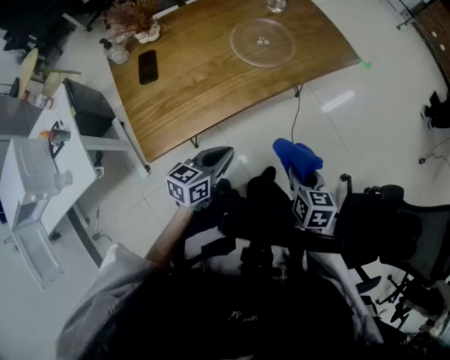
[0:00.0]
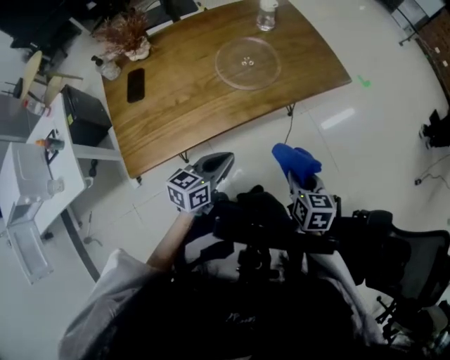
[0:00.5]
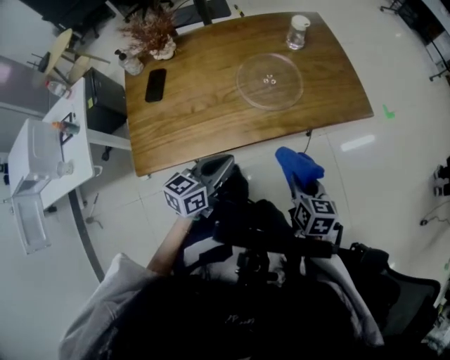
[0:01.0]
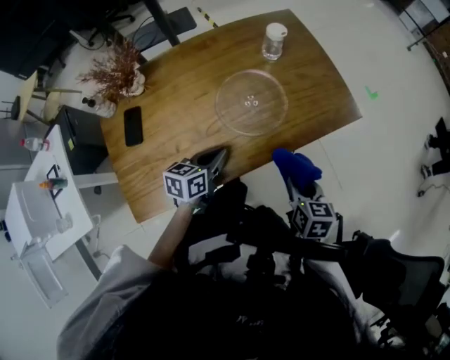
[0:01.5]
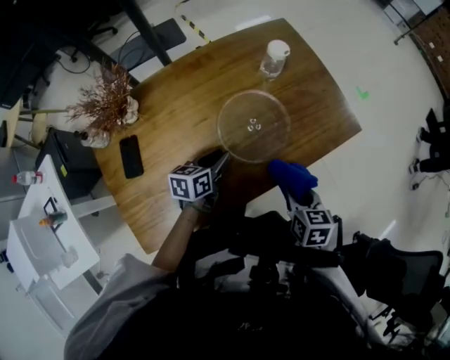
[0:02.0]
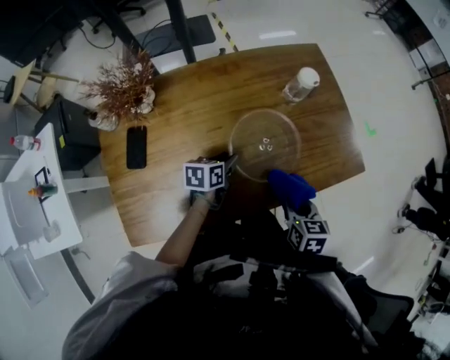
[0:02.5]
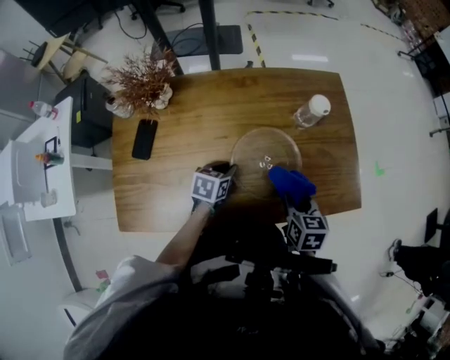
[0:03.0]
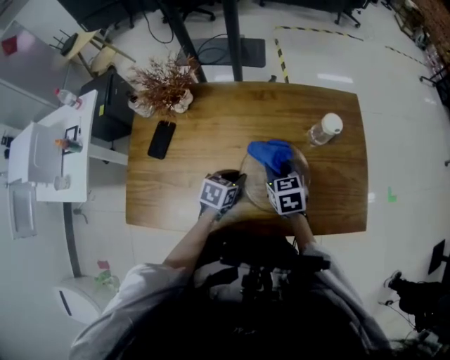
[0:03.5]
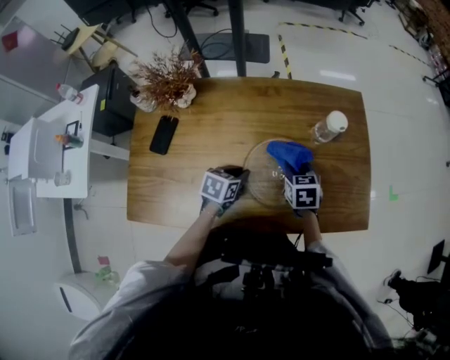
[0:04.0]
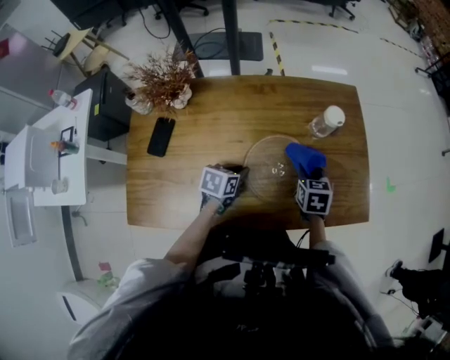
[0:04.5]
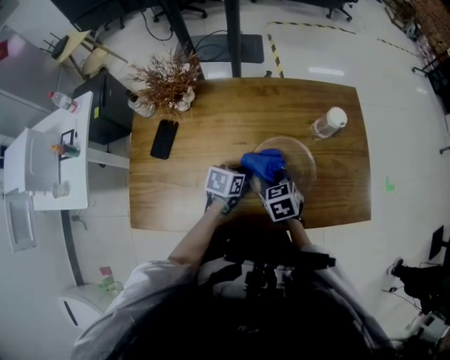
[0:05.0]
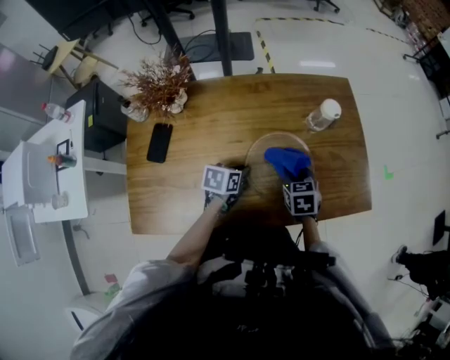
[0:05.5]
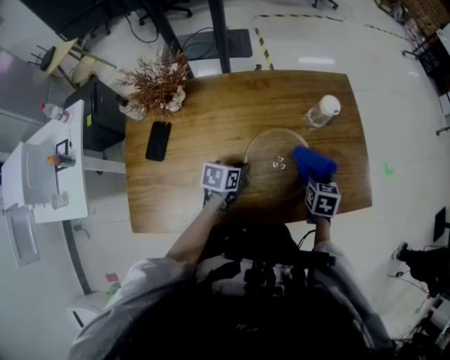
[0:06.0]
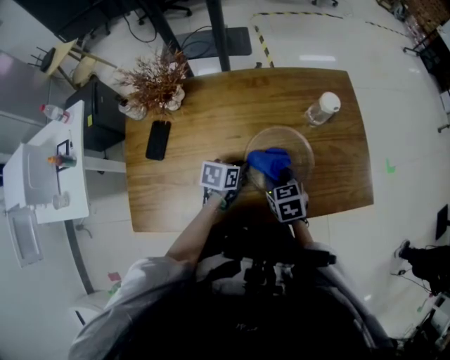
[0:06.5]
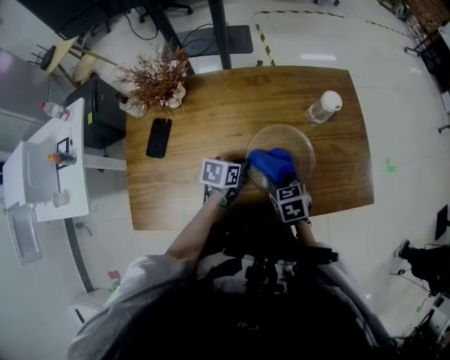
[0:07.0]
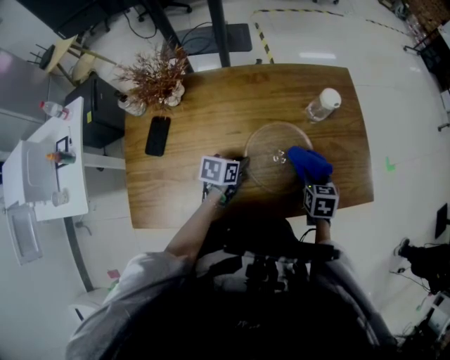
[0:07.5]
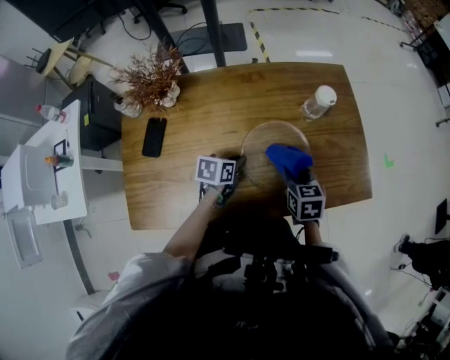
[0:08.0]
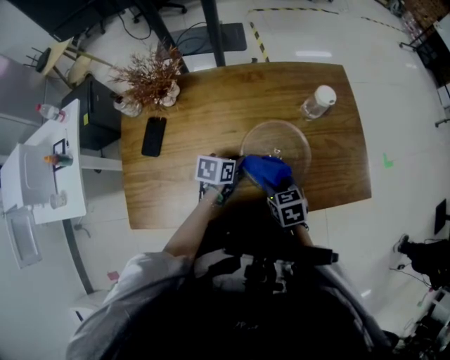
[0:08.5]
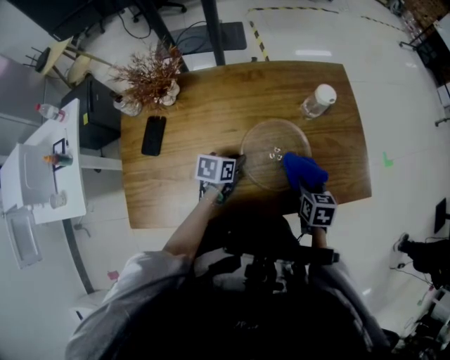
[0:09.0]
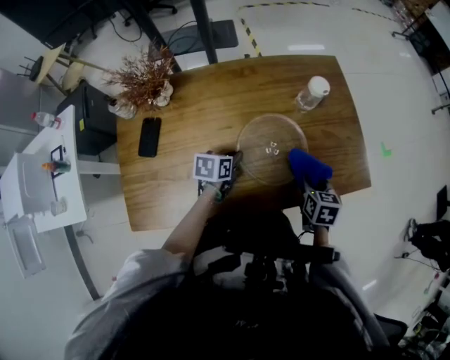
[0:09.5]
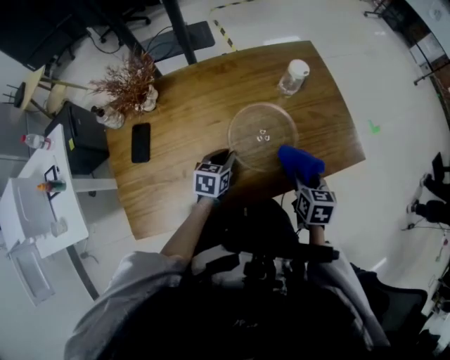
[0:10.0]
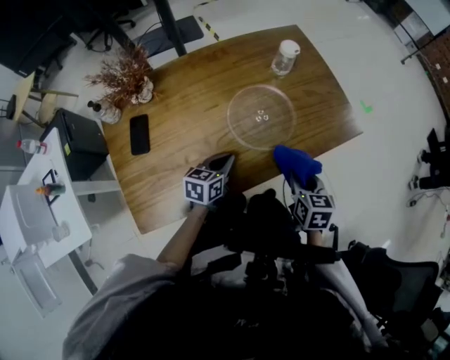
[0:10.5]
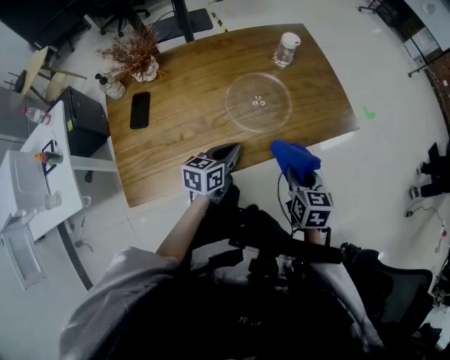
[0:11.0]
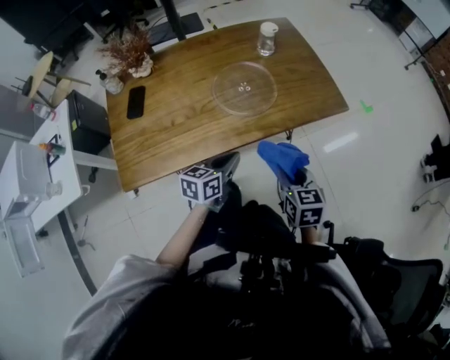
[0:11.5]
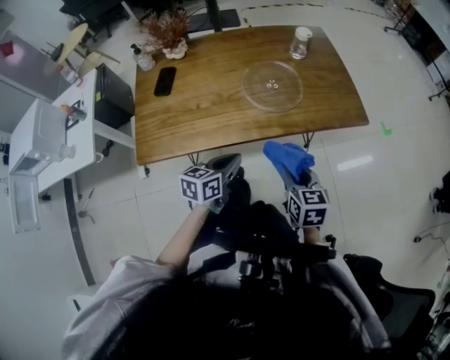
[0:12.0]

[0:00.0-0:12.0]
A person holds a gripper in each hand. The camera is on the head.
0.0 to 2.0 s: Both grippers move forward, approximately 30 cm. The left gripper opens its fingers.
2.0 to 4.0 s: The left gripper moves approximately 5 cm, and swivels roughly 20 degrees. The right gripper moves some 25 cm, and rotates approximately 40 degrees.
4.0 to 6.0 s: The right gripper goes left and right, approximately 20 cm each way, reversing 2 times, and swivels roughly 20 degrees.
6.0 to 8.0 s: The right gripper swings left and right, roughly 15 cm each way, with 2 reversals.
8.0 to 10.0 s: The right gripper travels to the right and backward by about 10 cm.
10.0 to 12.0 s: The two grippers go some 25 cm backward. The left gripper swivels approximately 20 degrees.

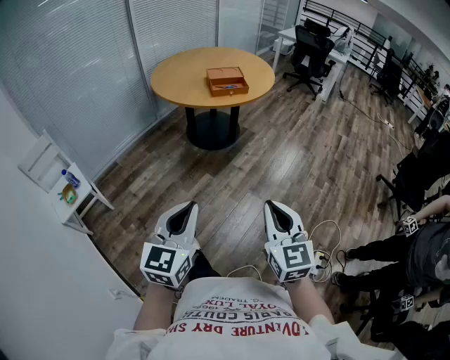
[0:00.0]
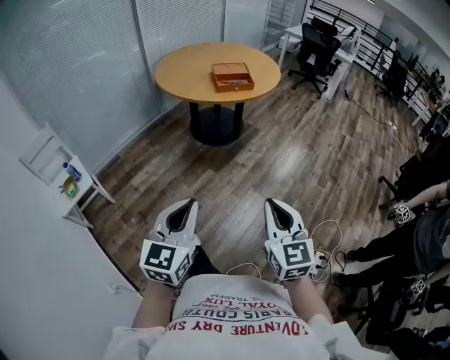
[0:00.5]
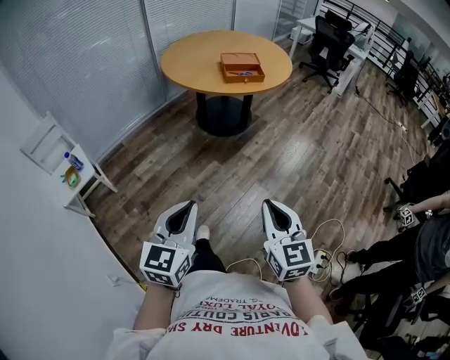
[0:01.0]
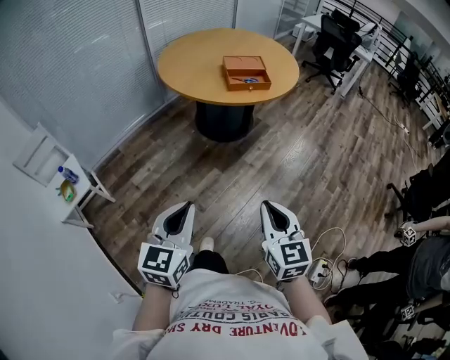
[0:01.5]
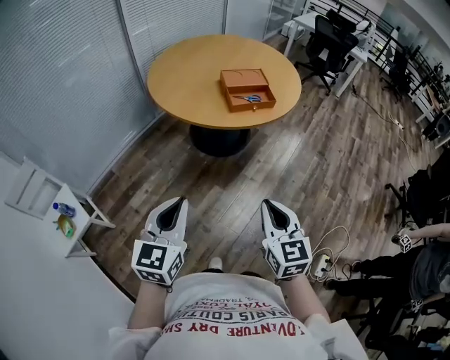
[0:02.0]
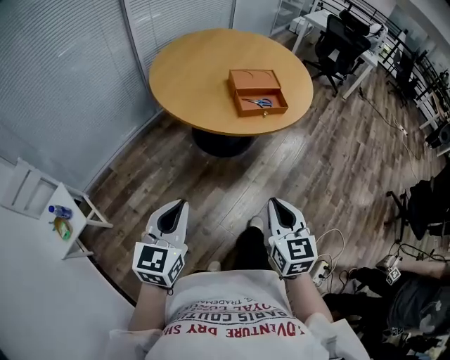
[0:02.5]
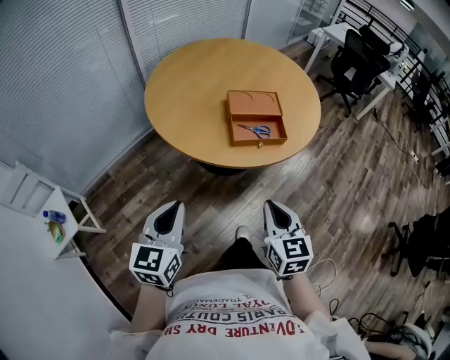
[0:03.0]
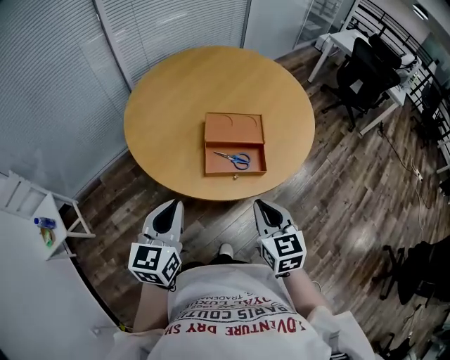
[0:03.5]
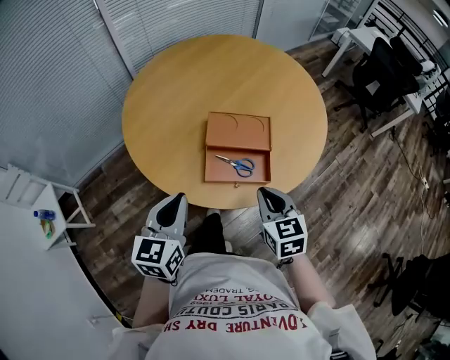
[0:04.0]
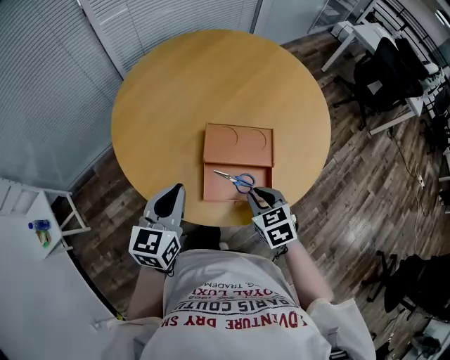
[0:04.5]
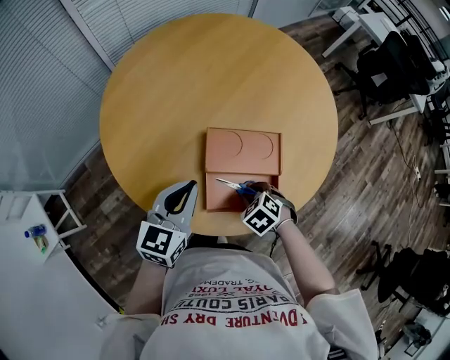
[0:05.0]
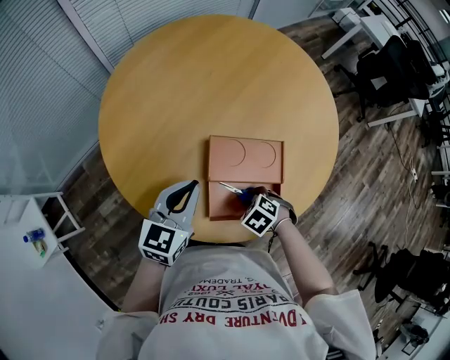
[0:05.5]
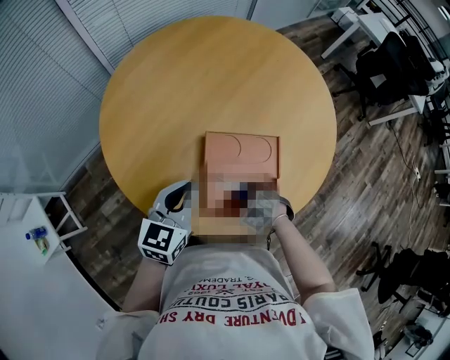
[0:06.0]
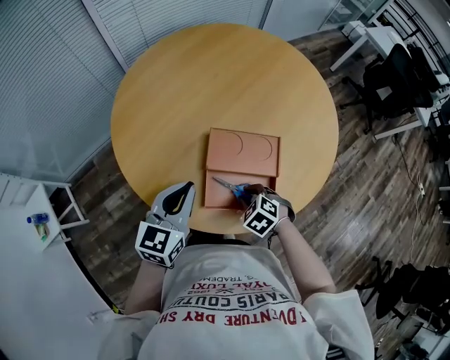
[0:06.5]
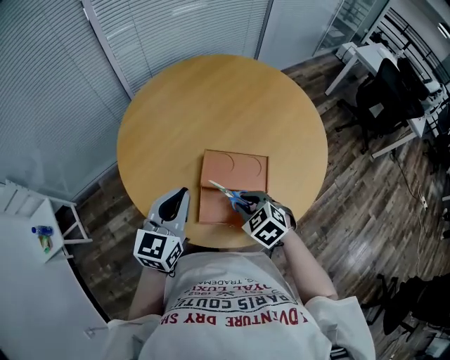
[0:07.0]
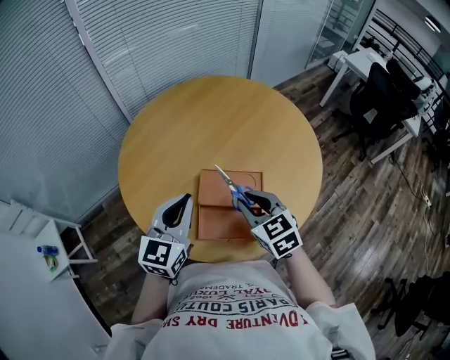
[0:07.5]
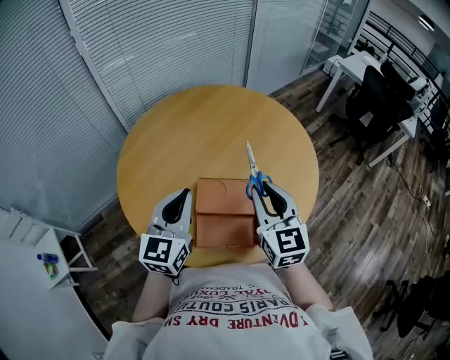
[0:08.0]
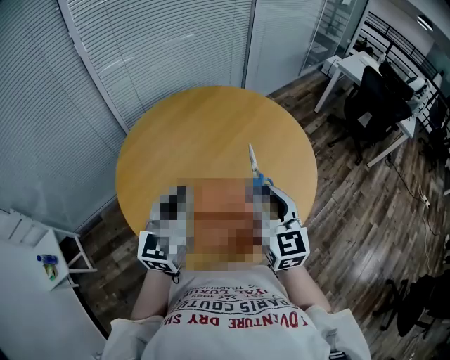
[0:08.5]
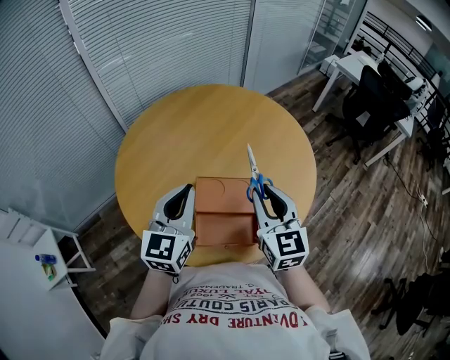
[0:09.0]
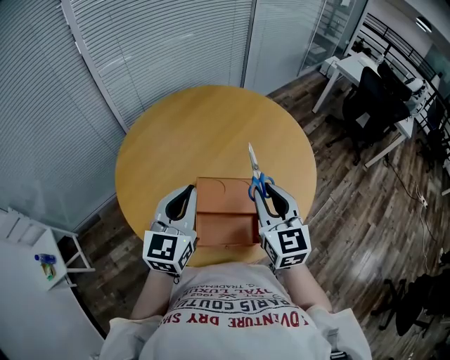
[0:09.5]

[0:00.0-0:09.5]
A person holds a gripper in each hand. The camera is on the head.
0.0 to 2.0 s: The left gripper is displaced forward and to the left by approximately 35 cm. Meanwhile the right gripper shifts approximately 30 cm forward.
2.0 to 4.0 s: The two grippers travel together, forward, about 50 cm. The right gripper changes its angle by approximately 30 degrees. The left gripper rotates about 20 degrees.
4.0 to 5.5 s: The left gripper ends up approximately 20 cm from where it was, while the right gripper is displaced downward by some 20 cm, tips its fingers downward by about 50 degrees, and opens.
5.5 to 7.5 s: The left gripper heads upward, covering about 15 cm, while the right gripper shifts about 25 cm upward, and angles its fingers upward, by approximately 50 degrees.
7.5 to 9.5 s: The right gripper shifts about 10 cm upward and to the right, and turns by roughly 30 degrees; the left gripper shifts by about 5 cm.

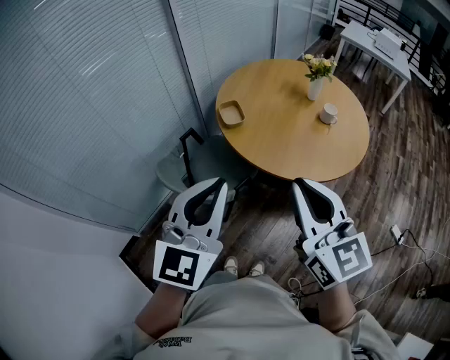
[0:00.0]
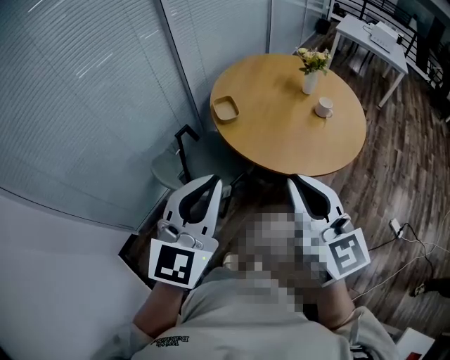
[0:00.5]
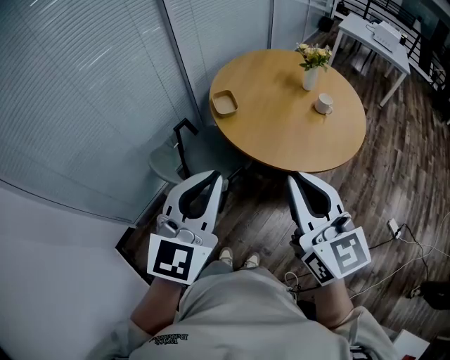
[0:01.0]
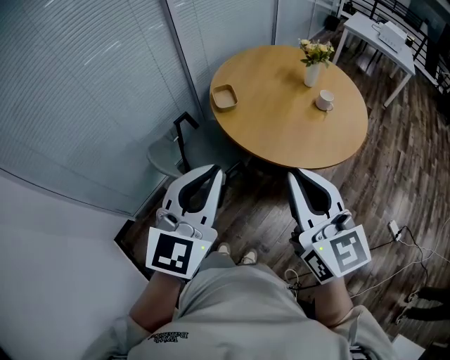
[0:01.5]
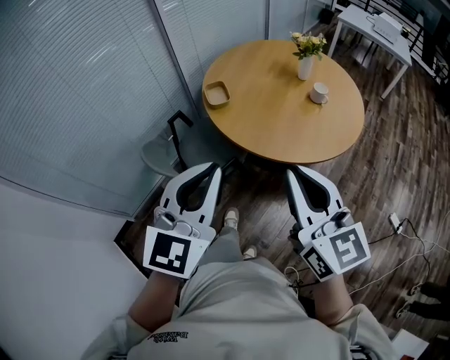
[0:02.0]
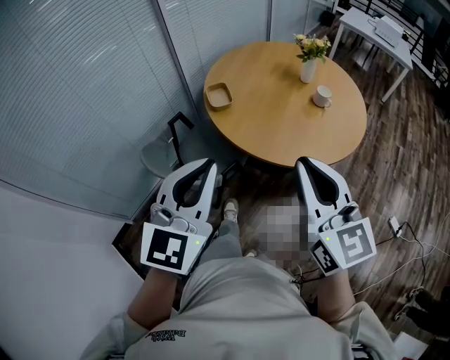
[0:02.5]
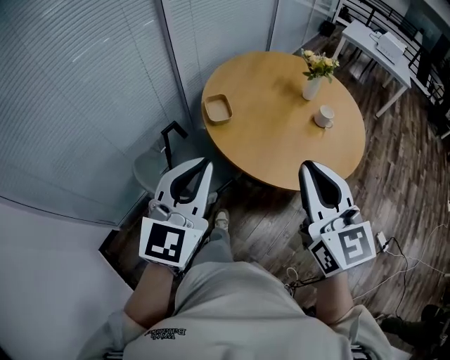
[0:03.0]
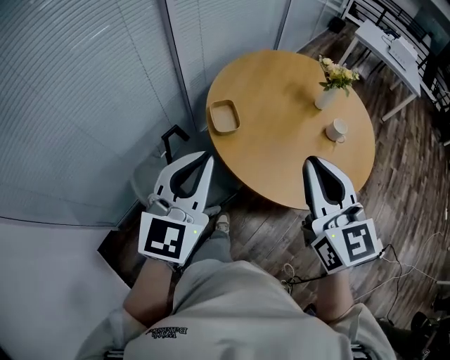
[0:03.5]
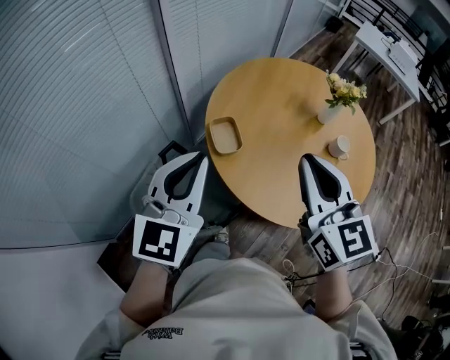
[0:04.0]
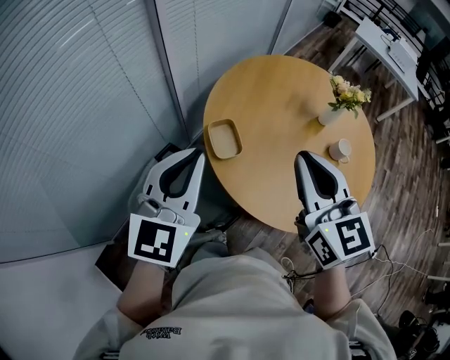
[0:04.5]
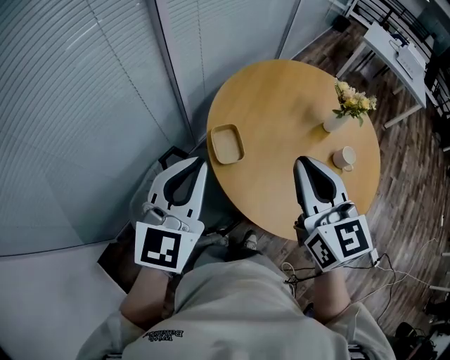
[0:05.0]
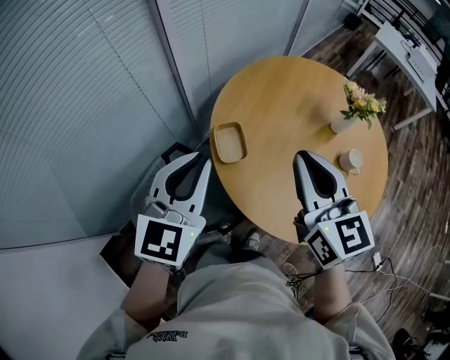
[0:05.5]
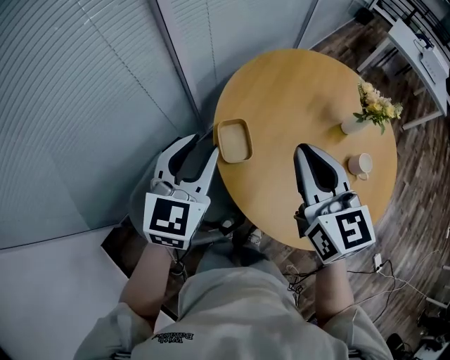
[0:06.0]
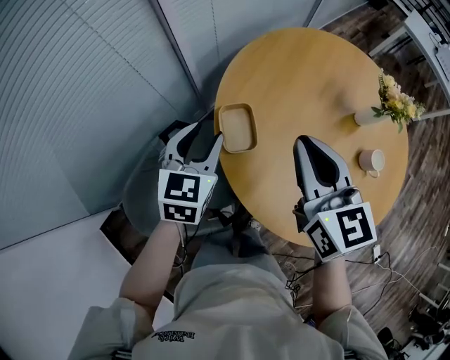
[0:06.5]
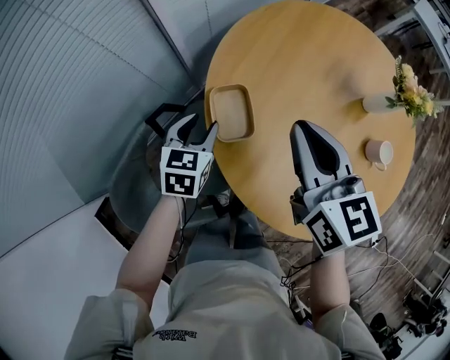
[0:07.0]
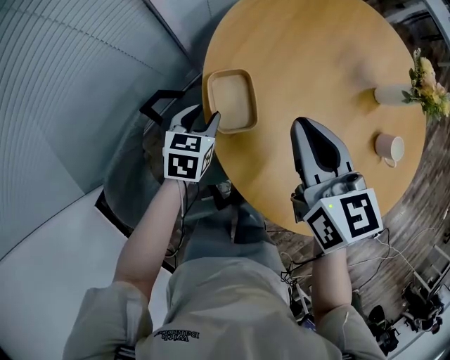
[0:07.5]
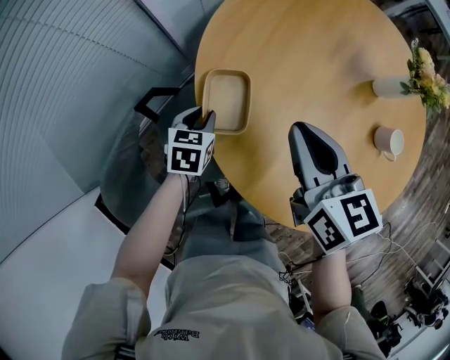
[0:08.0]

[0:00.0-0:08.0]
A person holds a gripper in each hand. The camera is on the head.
0.0 to 2.0 s: Both grippers move to the right, about 5 cm.
2.0 to 4.0 s: The right gripper goes approximately 35 cm forward, while the left gripper shifts some 35 cm forward and to the left.
4.0 to 6.0 s: Both grippers travel together forward and downward, about 15 cm. The left gripper opens.
6.0 to 8.0 s: The right gripper is displaced downward by about 20 cm, and swivels roughly 20 degrees; the left gripper is displaced downward by some 35 cm, and points its fingers about 30 degrees further downward.
